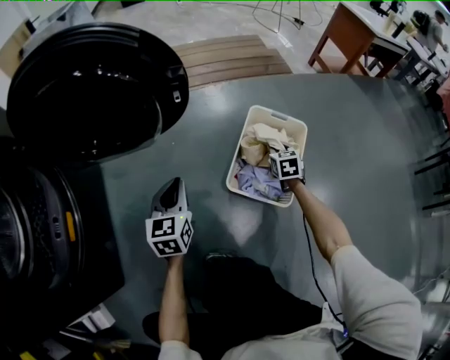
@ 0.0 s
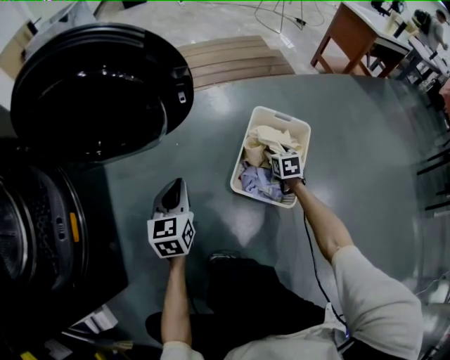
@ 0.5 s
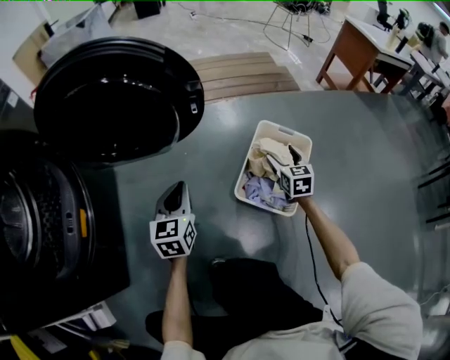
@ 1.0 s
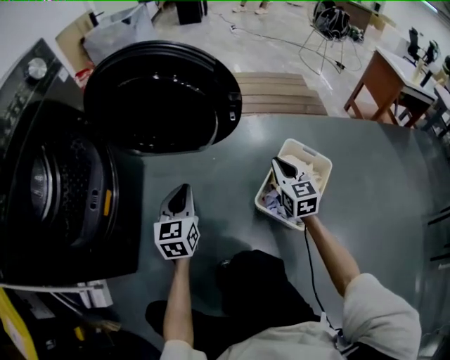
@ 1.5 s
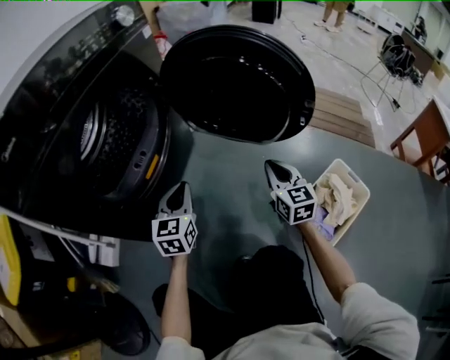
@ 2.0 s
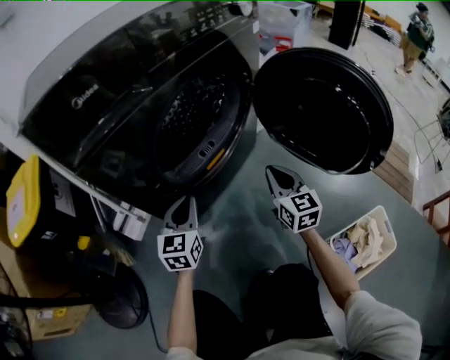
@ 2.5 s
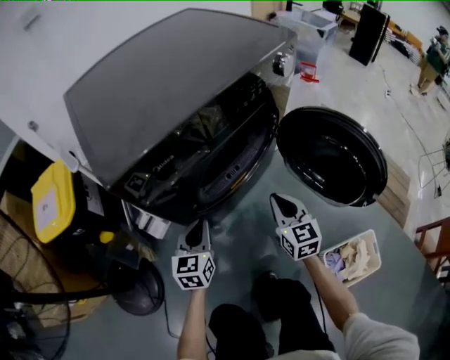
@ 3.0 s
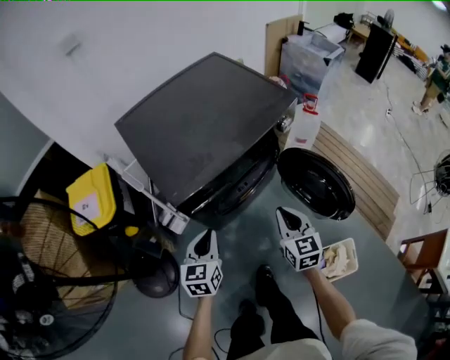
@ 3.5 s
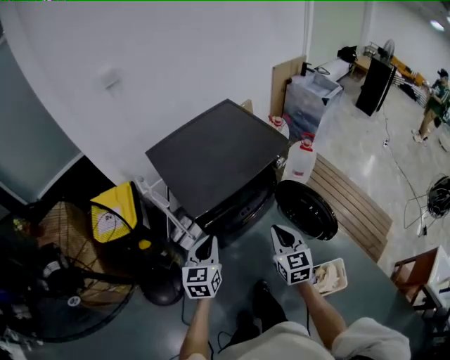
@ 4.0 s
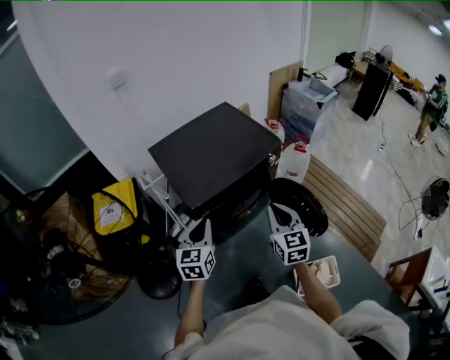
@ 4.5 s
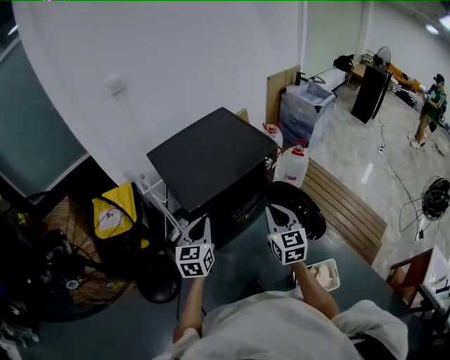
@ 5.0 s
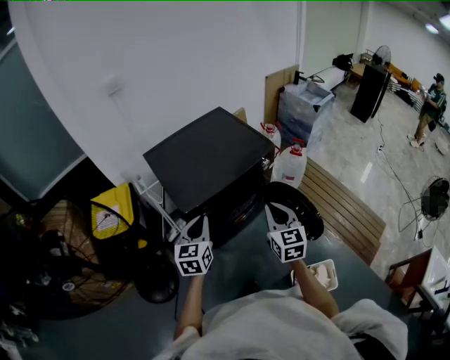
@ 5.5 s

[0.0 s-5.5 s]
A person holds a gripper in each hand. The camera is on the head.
0.0 to 2.0 s: The left gripper moves about 30 cm, and swivels approximately 30 degrees; the right gripper ends up some 40 cm from where it was, turns by some 50 degrees, and opens and closes again.
2.0 to 3.5 s: Both grippers travel together upward, approximately 40 cm. The left gripper rotates approximately 30 degrees; the right gripper swivels roughly 30 degrees.
3.5 to 5.5 s: The grippers both shift upward by roughly 25 cm.

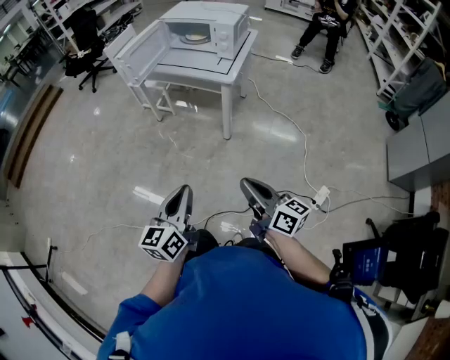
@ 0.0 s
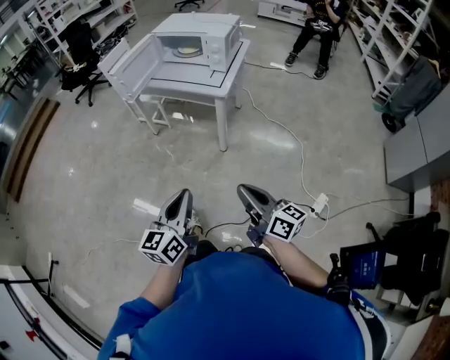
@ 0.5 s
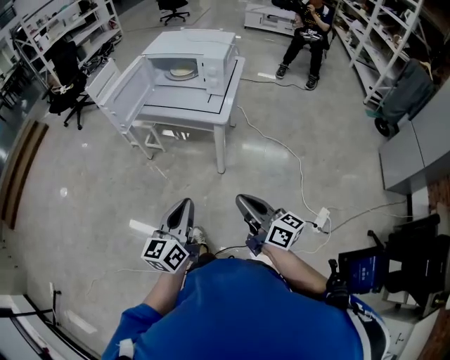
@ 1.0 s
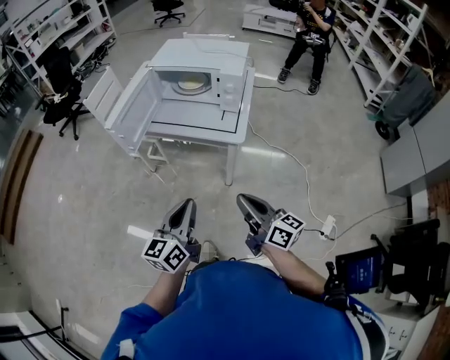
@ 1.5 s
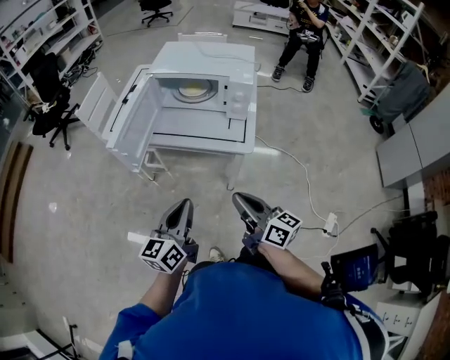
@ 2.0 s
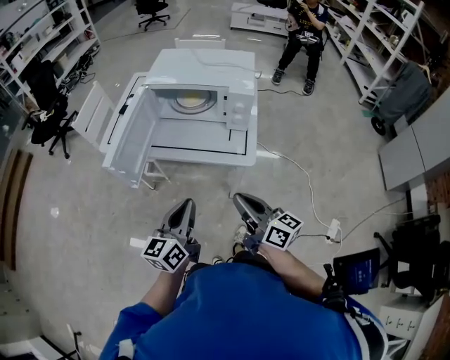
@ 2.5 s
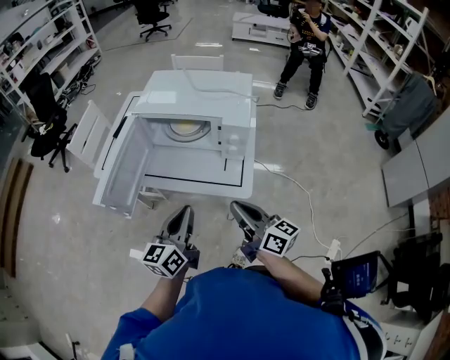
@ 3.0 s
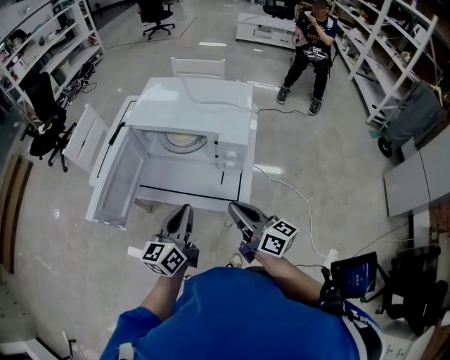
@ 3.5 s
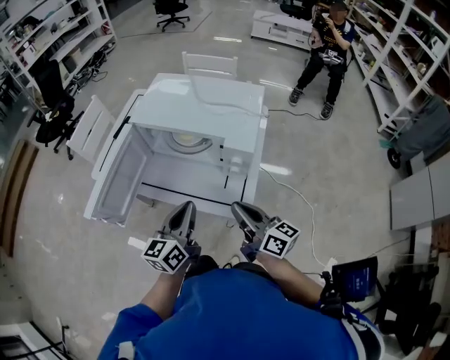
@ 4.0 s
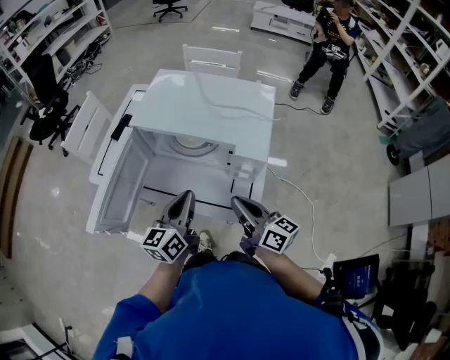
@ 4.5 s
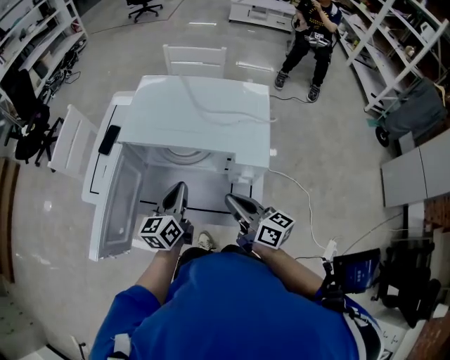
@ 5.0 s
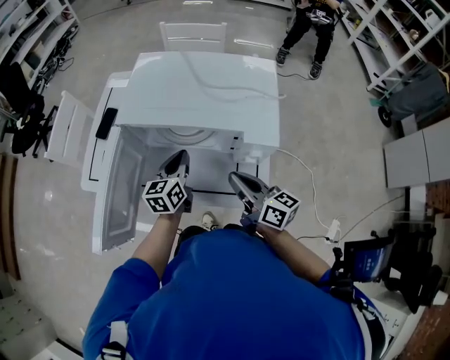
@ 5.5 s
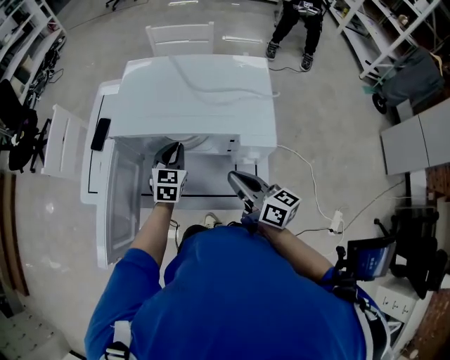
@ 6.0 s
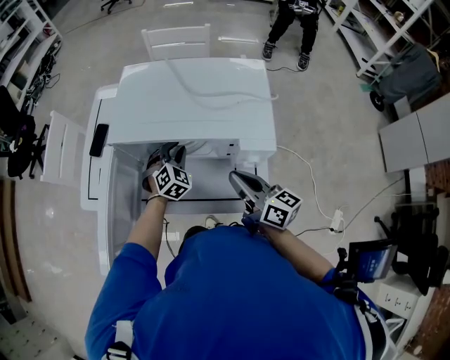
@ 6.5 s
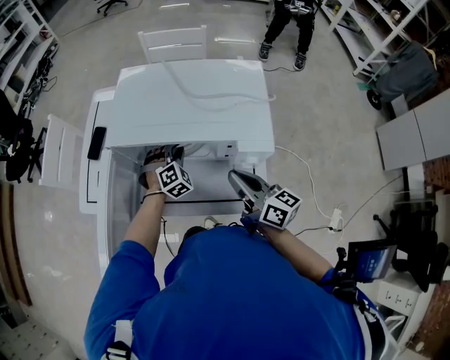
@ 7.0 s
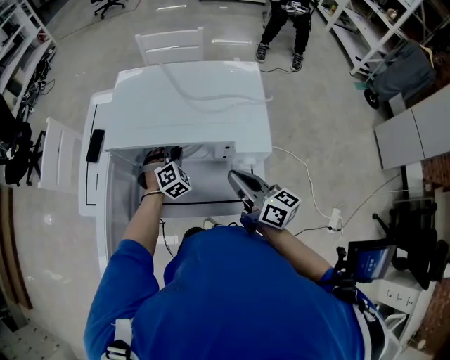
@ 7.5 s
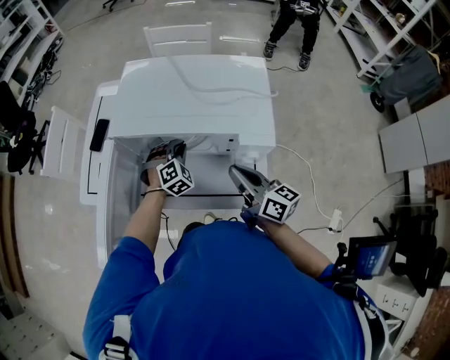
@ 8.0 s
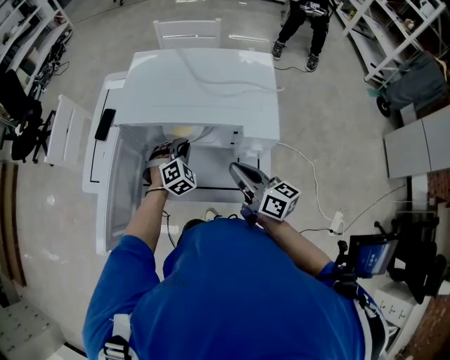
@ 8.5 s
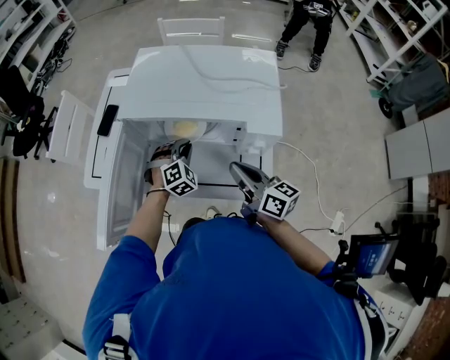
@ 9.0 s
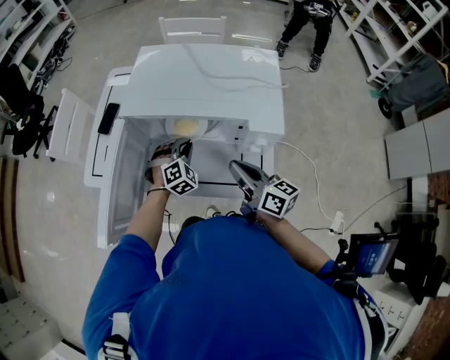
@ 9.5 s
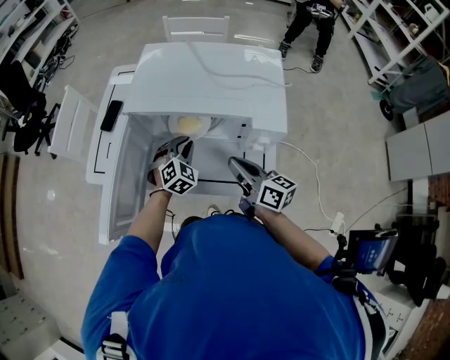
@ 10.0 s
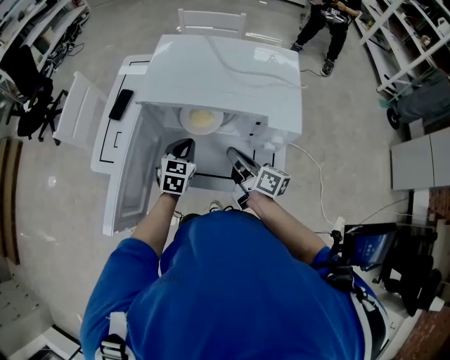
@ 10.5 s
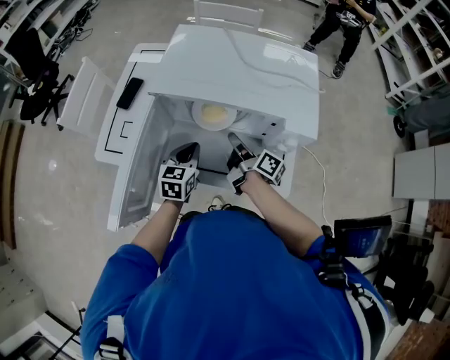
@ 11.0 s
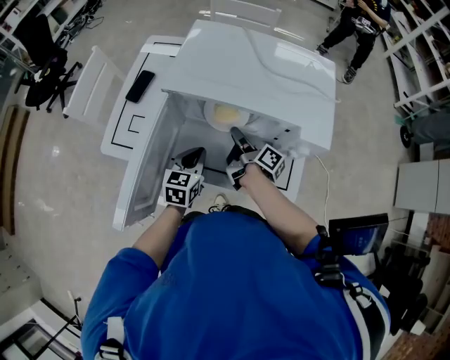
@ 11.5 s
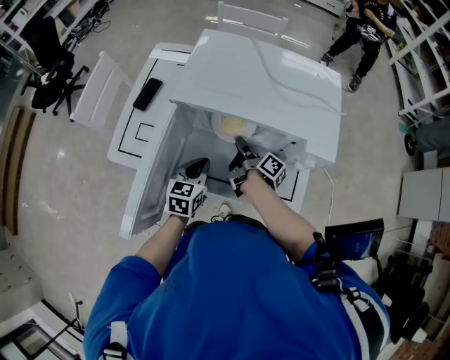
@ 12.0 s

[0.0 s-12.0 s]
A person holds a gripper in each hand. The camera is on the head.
0.0 to 2.0 s: Both grippers move forward, some 35 cm.
2.0 to 4.0 s: Both grippers move forward and to the right, some 25 cm.
4.0 to 6.0 s: The left gripper travels forward and downward by some 25 cm, and rotates approximately 40 degrees. Meanwhile the right gripper heads forward, covering some 10 cm.
6.0 to 8.0 s: The left gripper ends up approximately 5 cm from where it was, and rolls clockwise, seen from behind, by about 50 degrees.
8.0 to 10.0 s: The left gripper moves approximately 5 cm.
10.0 to 12.0 s: The right gripper moves forward, downward and to the left, about 20 cm, twists some 50 degrees clockwise, seen from behind, and opens. The left gripper moves to the left and backward, some 10 cm, and rotates around the line of its fingers by roughly 50 degrees, counterclockwise from behind.

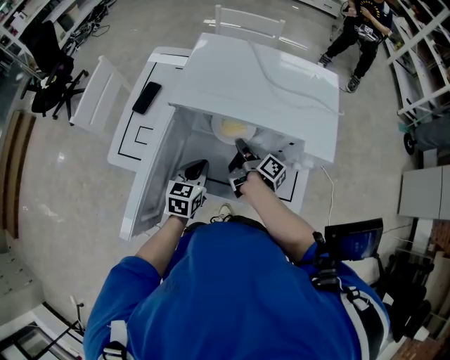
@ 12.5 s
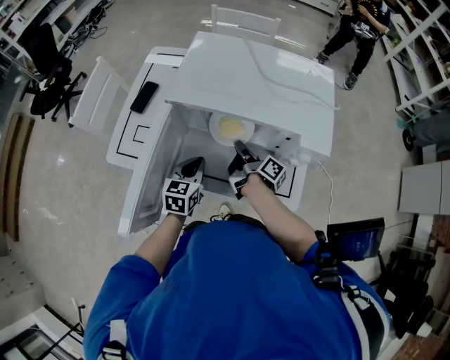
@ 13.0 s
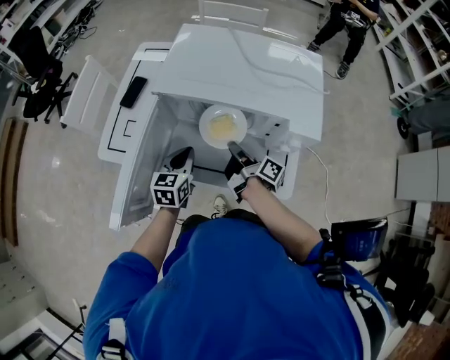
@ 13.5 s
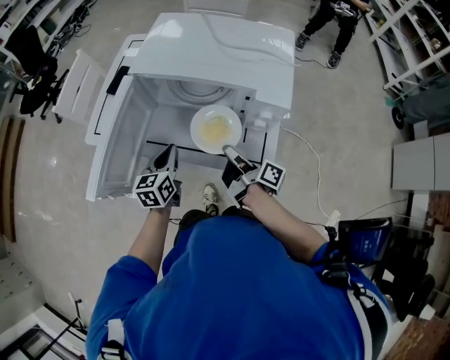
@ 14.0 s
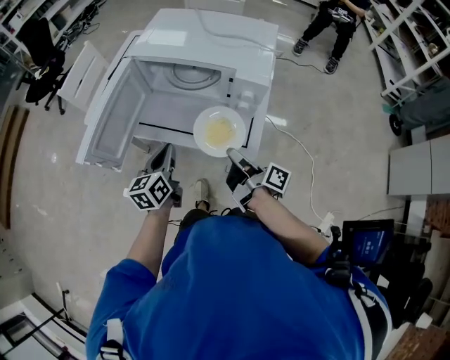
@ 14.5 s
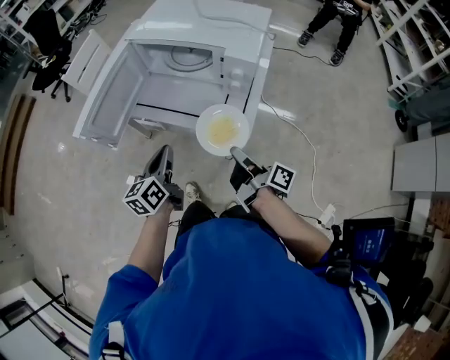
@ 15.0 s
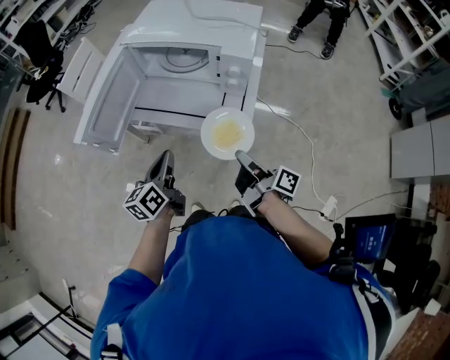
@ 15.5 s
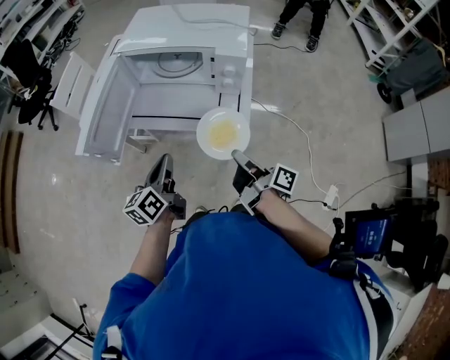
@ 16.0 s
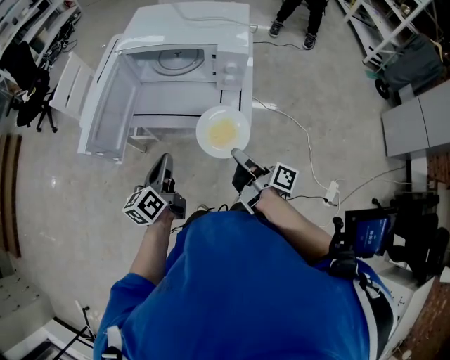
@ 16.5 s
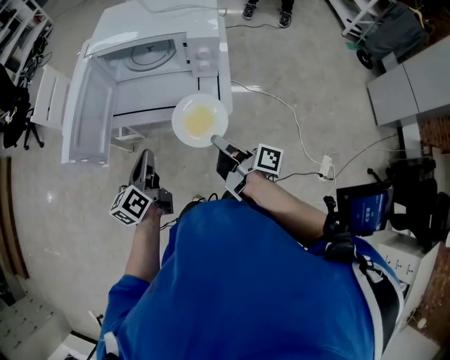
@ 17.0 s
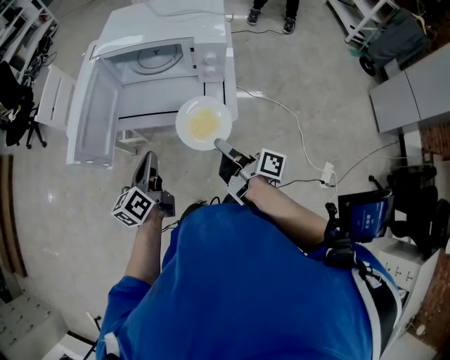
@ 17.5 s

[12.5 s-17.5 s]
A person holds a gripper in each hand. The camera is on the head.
12.5 to 15.0 s: The left gripper shifts about 25 cm backward, and changes its angle by about 40 degrees. The right gripper heads backward and to the right, covering approximately 35 cm, and rotates some 20 degrees.
15.0 to 17.5 s: The right gripper changes place by roughly 5 cm.

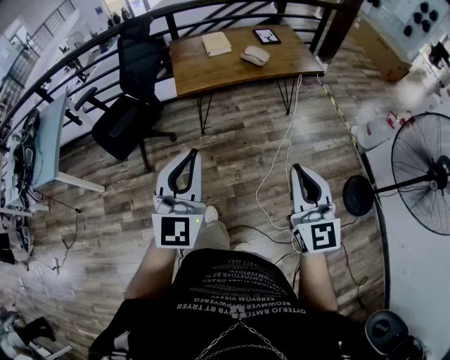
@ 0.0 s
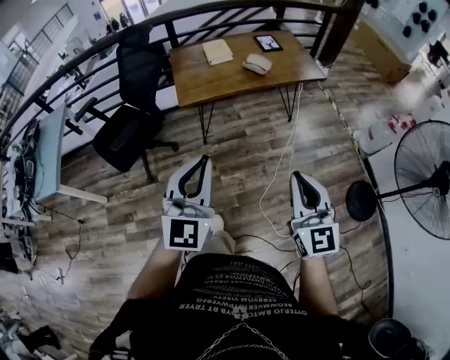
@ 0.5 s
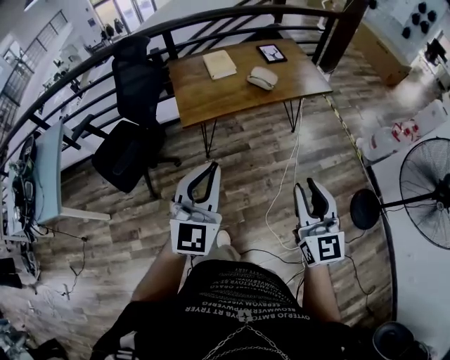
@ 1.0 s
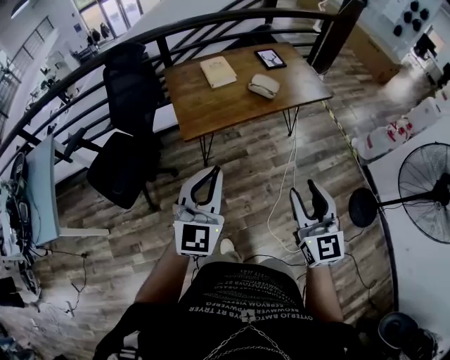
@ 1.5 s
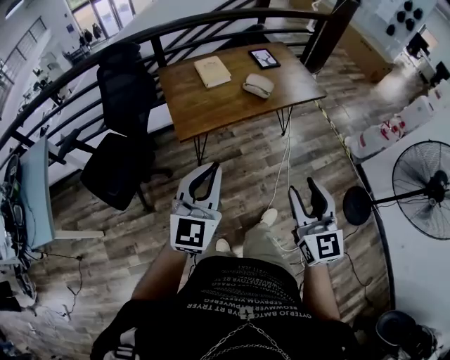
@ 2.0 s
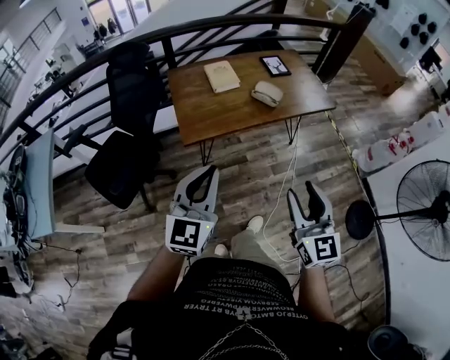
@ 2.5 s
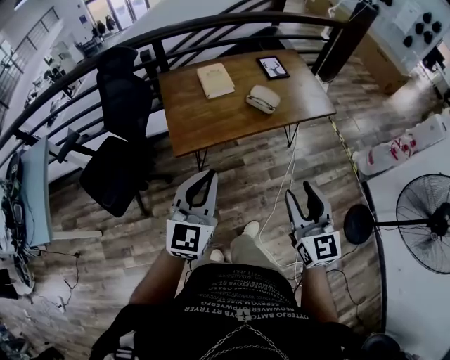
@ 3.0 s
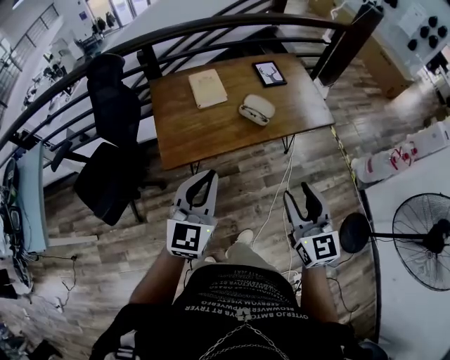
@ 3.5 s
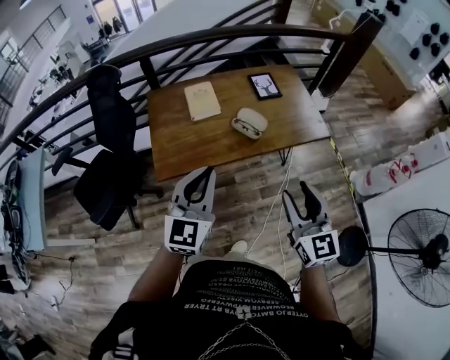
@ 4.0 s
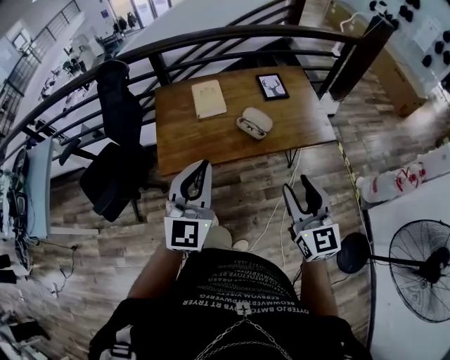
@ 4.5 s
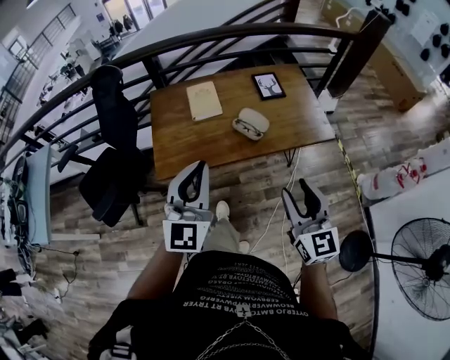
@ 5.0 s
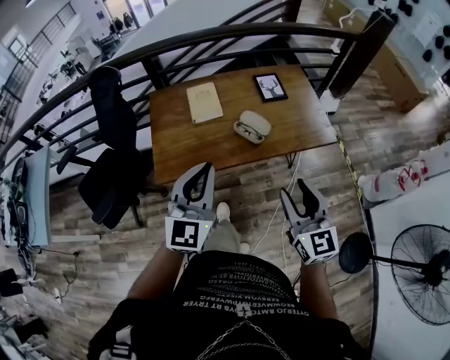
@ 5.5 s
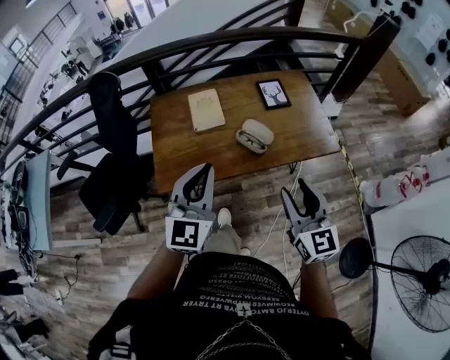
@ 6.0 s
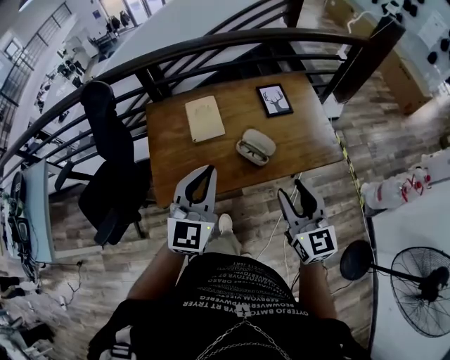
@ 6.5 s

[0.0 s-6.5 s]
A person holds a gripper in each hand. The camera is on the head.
0.0 to 2.0 s: The right gripper goes some 20 cm forward and to the left, and opens; the left gripper goes about 25 cm forward.
2.0 to 4.5 s: The grippers both shift forward and to the right by roughly 30 cm.
4.5 to 6.5 s: The grippers both shift forward by about 15 cm.
